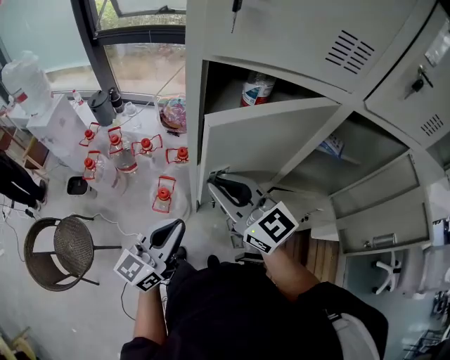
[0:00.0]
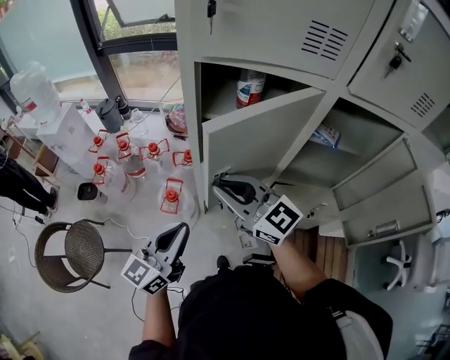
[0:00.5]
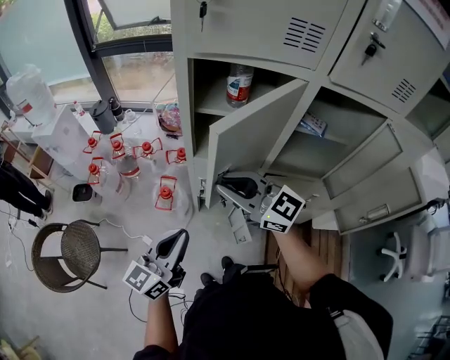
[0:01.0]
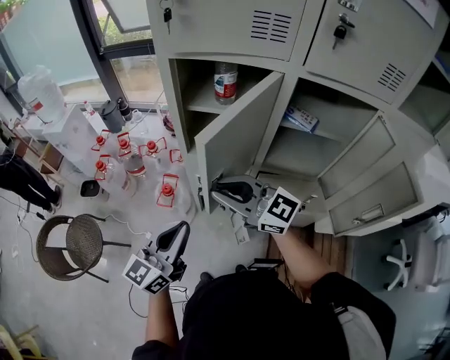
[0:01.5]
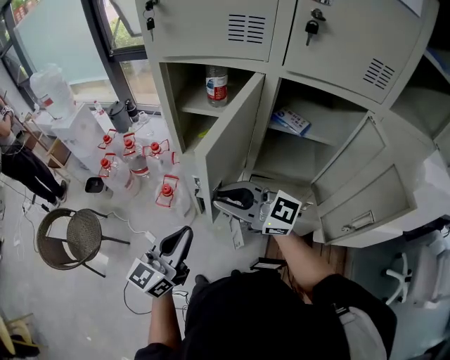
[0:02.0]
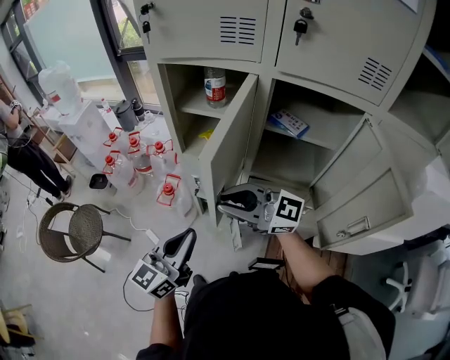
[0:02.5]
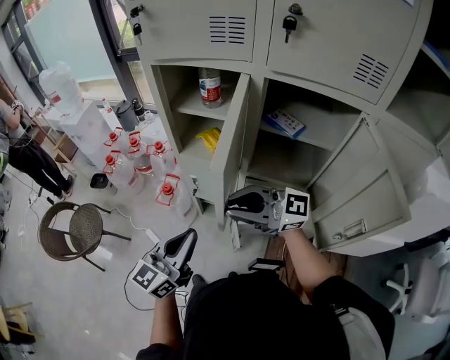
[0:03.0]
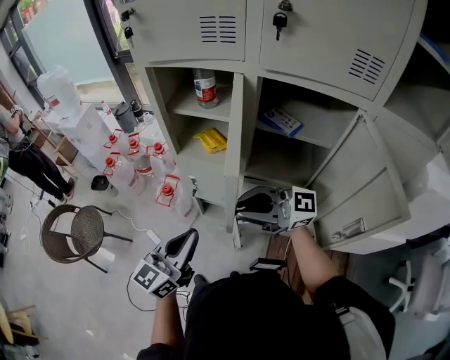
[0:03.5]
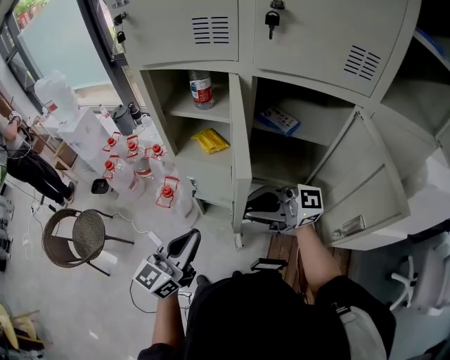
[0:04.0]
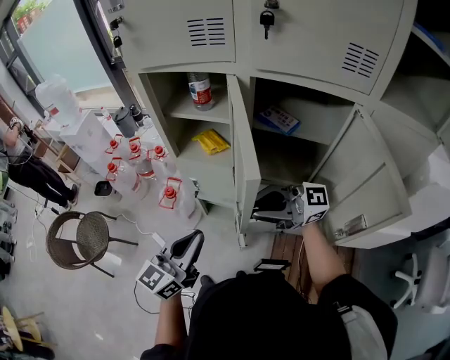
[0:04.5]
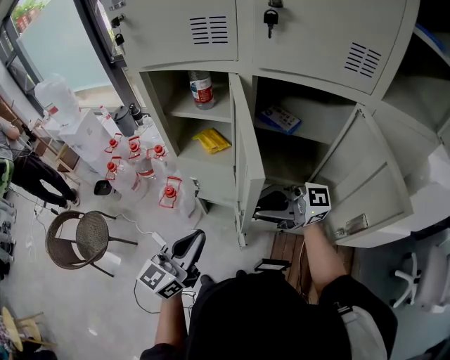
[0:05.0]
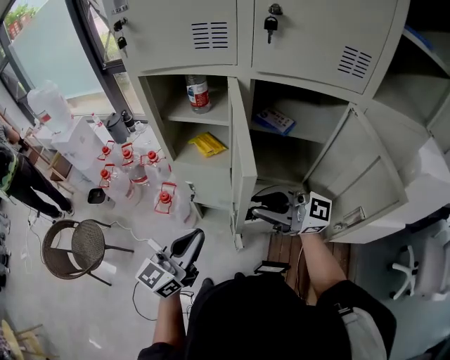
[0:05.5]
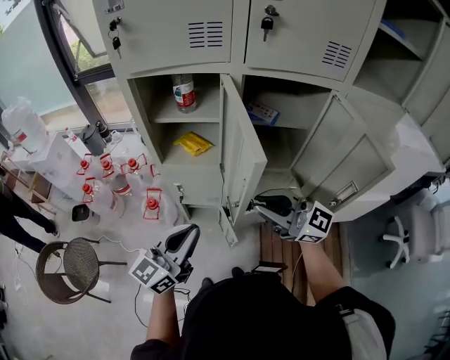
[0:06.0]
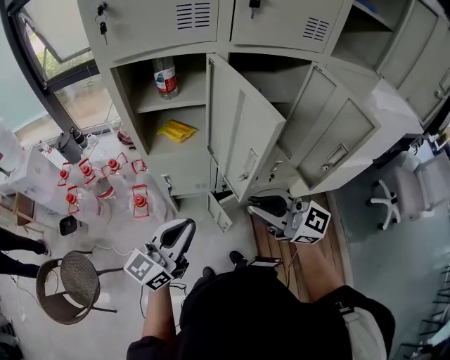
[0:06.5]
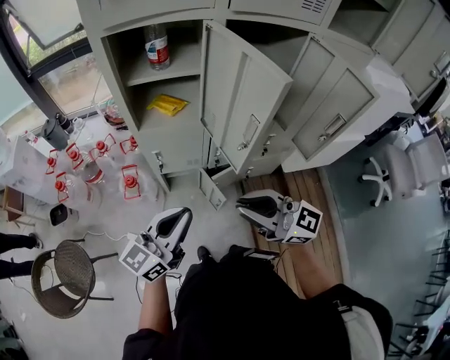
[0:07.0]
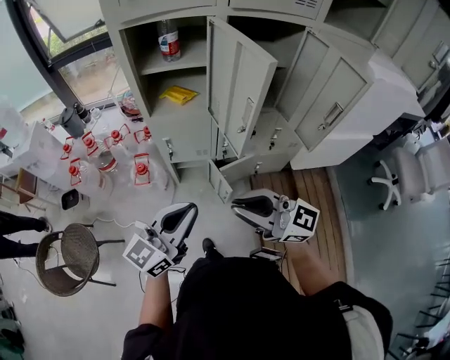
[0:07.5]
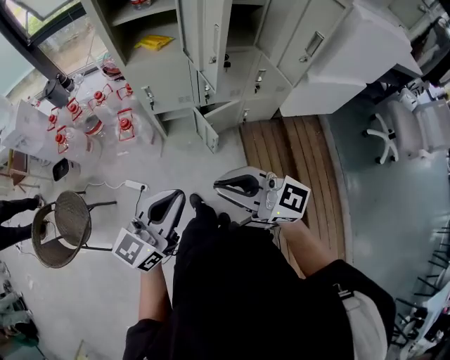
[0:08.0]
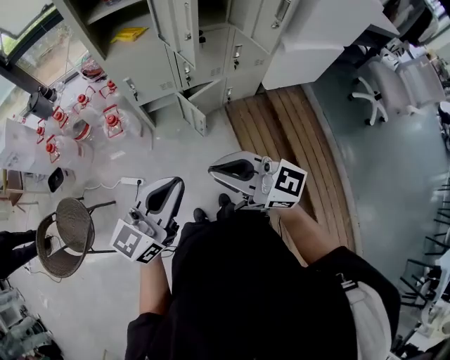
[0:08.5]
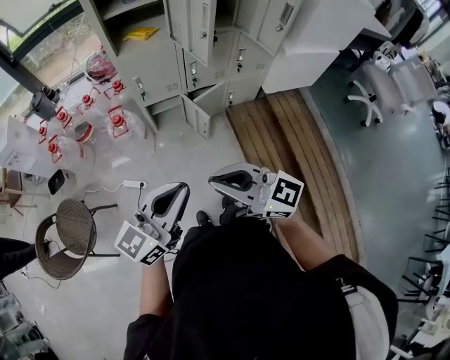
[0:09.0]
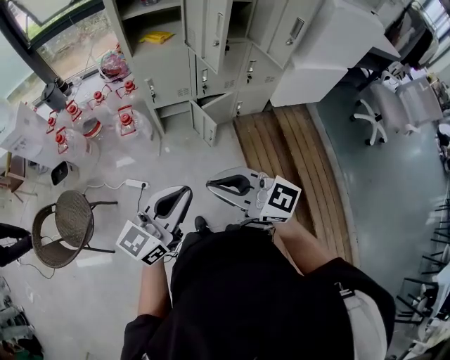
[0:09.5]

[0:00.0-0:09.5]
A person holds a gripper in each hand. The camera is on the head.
0:00.0 to 0:02.0: The grippers both shift backward and to the right by roughly 20 cm. The right gripper changes its angle by about 30 degrees.
0:02.0 to 0:04.0: The left gripper shifts by roughly 5 cm. Meanwhile the right gripper shifts by about 15 cm, and swivels about 20 degrees.
0:04.0 to 0:05.5: There are only small adjustments of the grippers.
0:05.5 to 0:07.5: The left gripper ends up roughly 15 cm from where it was, and swivels roughly 20 degrees. The right gripper changes place by roughly 25 cm, and turns by approximately 30 degrees.
0:07.5 to 0:09.5: The left gripper heads backward, covering approximately 25 cm; the right gripper goes some 25 cm backward and to the left.

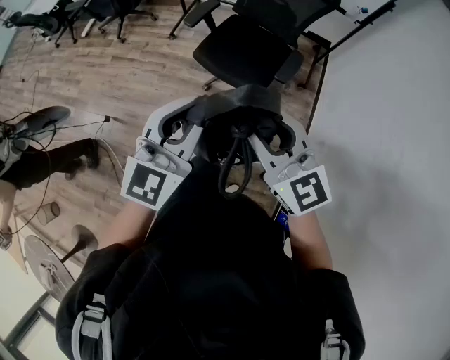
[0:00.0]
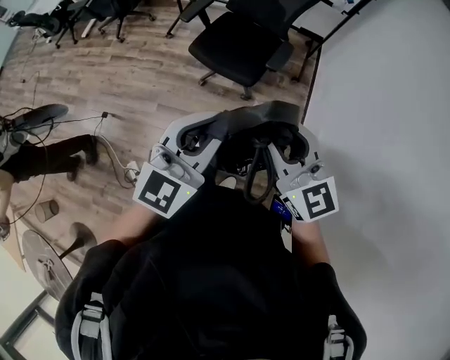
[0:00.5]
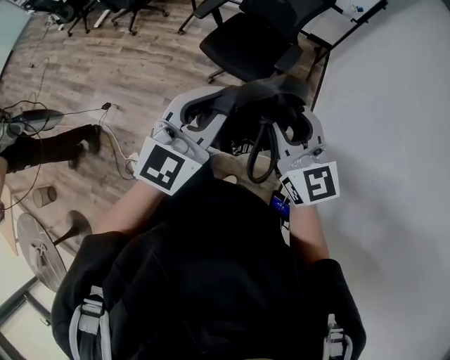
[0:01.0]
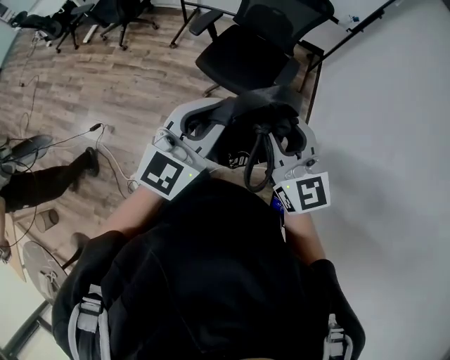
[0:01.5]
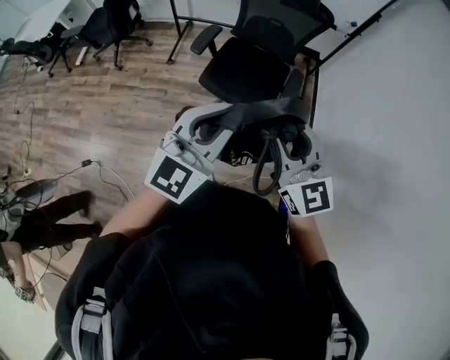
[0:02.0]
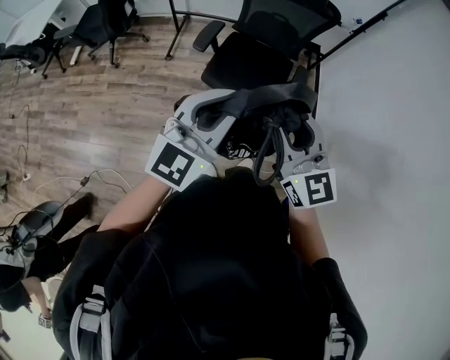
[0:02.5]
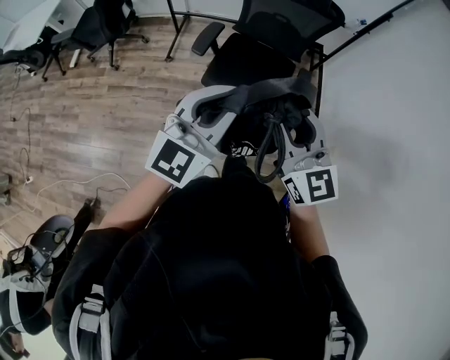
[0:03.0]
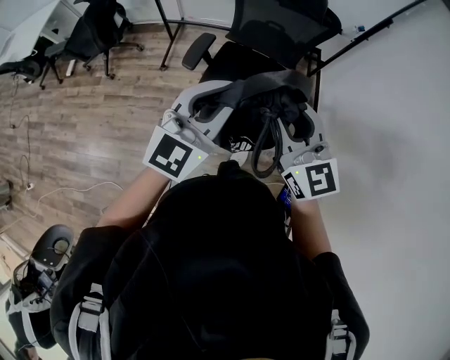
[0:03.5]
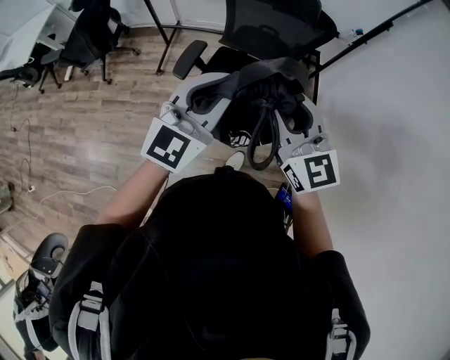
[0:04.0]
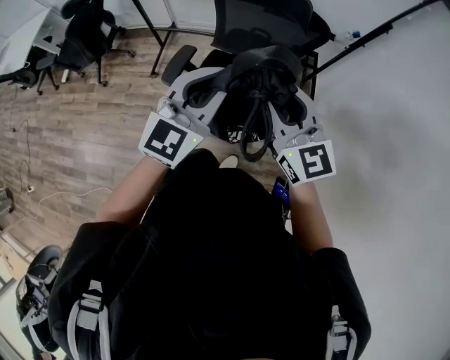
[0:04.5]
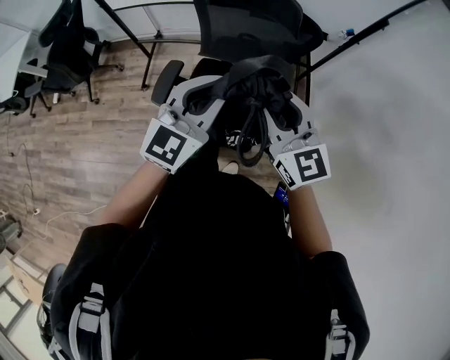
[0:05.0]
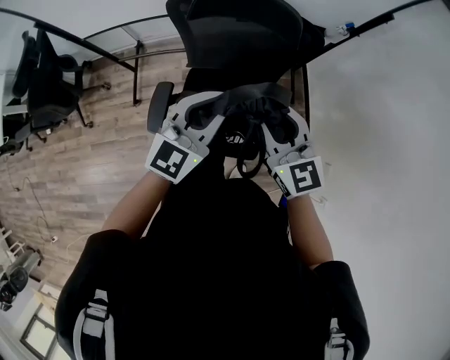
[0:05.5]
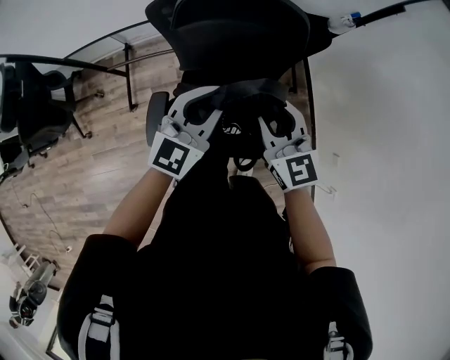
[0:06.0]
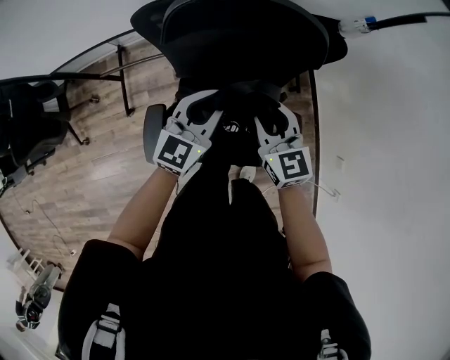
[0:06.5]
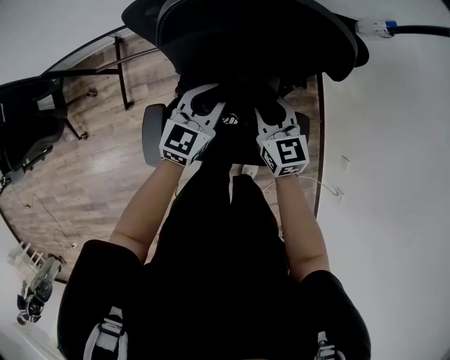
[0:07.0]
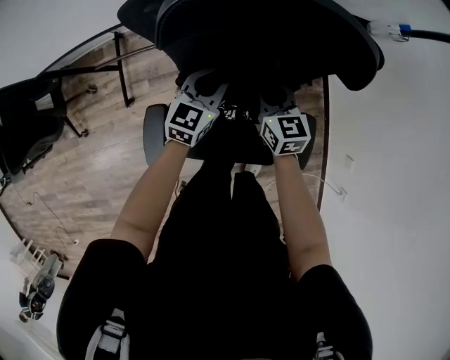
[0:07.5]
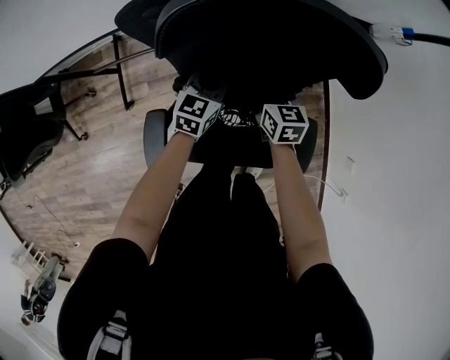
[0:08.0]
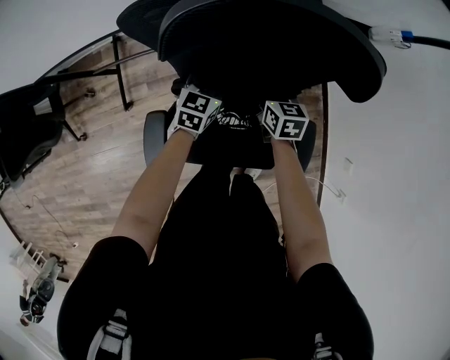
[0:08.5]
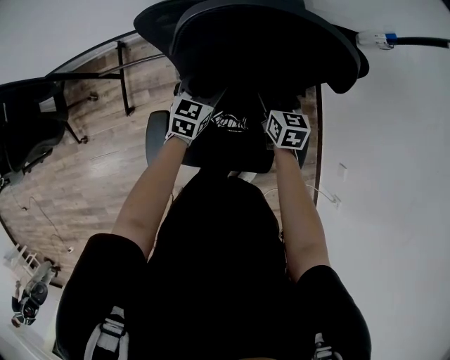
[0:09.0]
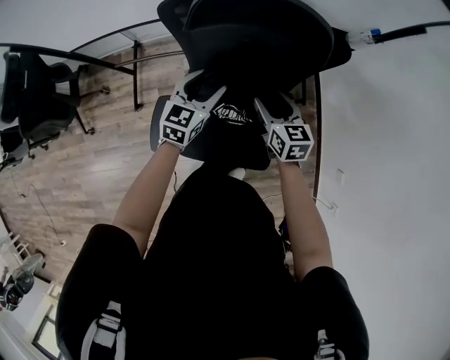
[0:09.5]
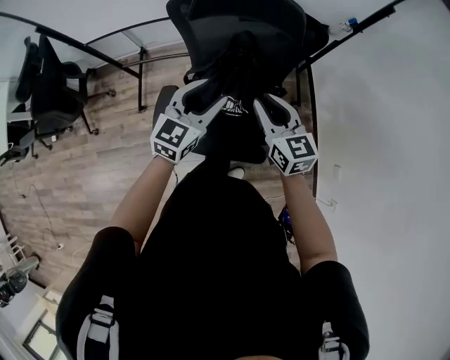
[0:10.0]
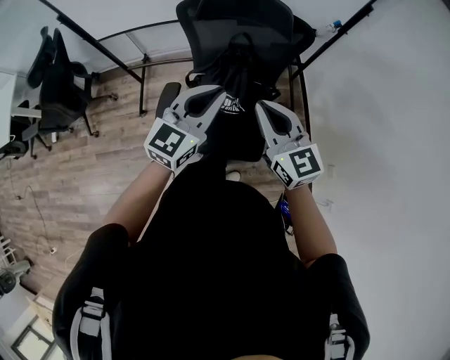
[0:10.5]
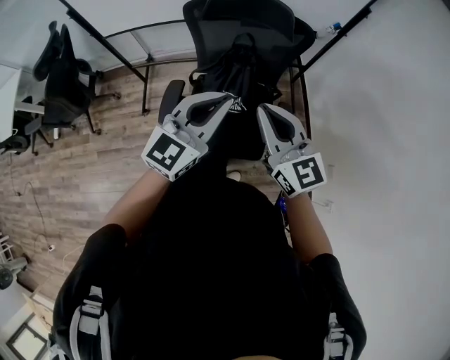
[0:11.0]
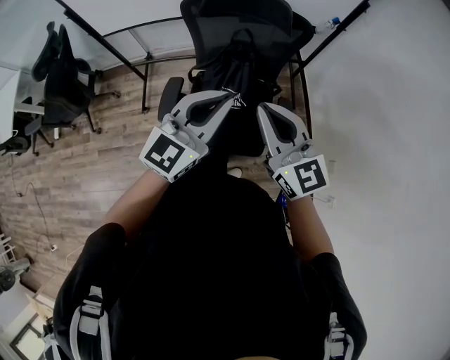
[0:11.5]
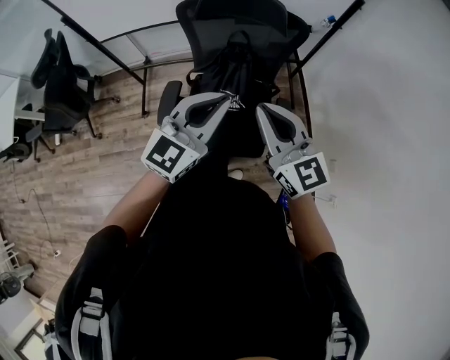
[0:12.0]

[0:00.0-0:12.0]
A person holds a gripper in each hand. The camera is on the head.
0:00.0 to 0:02.0: The left gripper shifts roughly 10 cm to the left, and goes backward and returns, approximately 10 cm each way, while the right gripper shifts some 10 cm to the left and upward, and swivels approximately 20 degrees.
0:02.0 to 0:04.0: The grippers both shift forward by approximately 30 cm.
0:04.0 to 0:06.0: The grippers both shift forward and downward by roughly 40 cm. The left gripper changes its angle by about 20 degrees, while the right gripper rotates some 20 degrees.
0:06.0 to 0:08.0: The grippers both shift downward and forward by roughly 35 cm. The right gripper changes its angle by roughly 30 degrees, while the left gripper swivels some 20 degrees.
0:08.0 to 0:10.0: Both grippers travel together upward and backward, about 35 cm. The left gripper opens; the right gripper rotates approximately 30 degrees, and opens, then closes again.
0:10.0 to 0:12.0: The grippers both shift upward and backward by about 25 cm. The left gripper closes up.

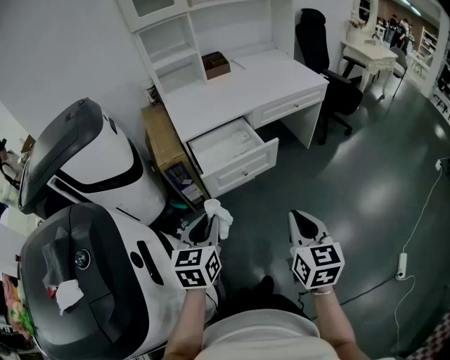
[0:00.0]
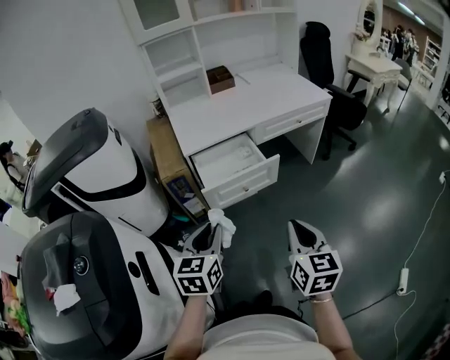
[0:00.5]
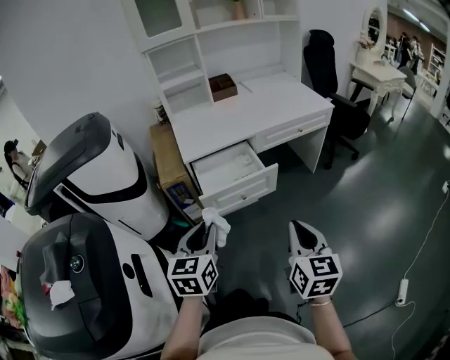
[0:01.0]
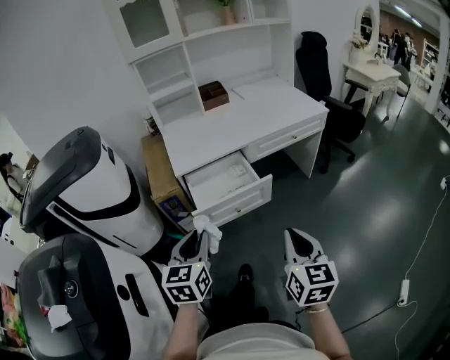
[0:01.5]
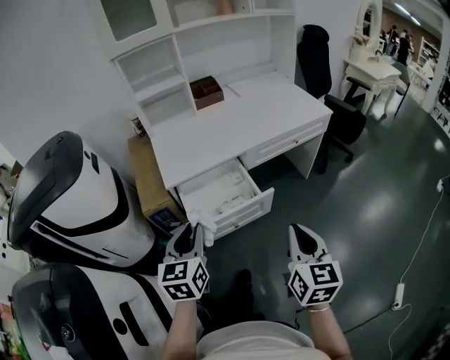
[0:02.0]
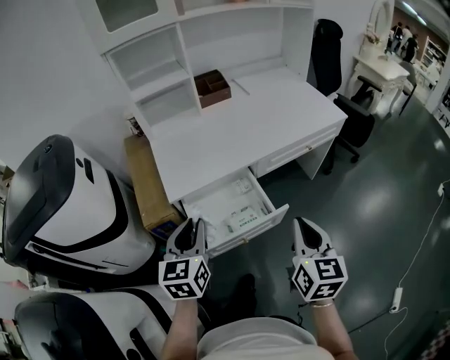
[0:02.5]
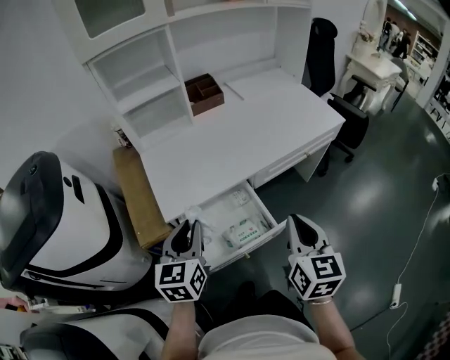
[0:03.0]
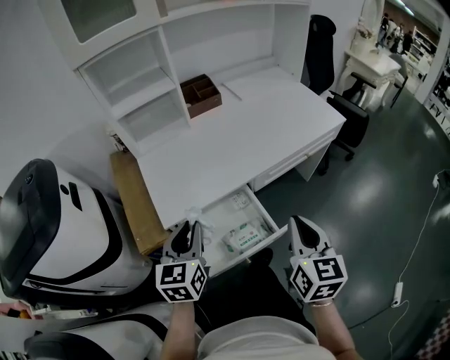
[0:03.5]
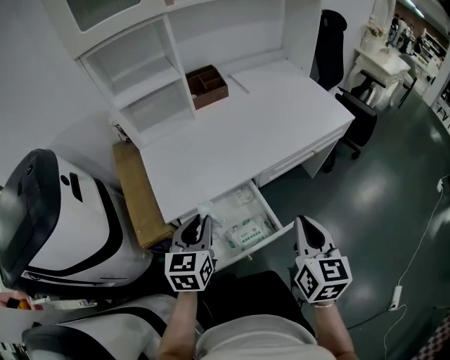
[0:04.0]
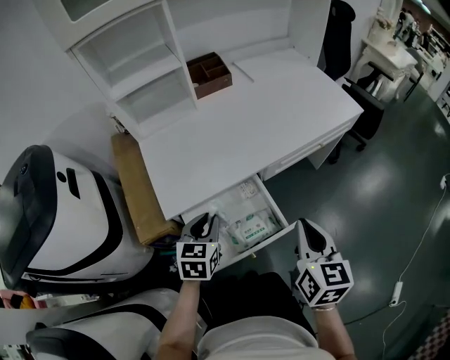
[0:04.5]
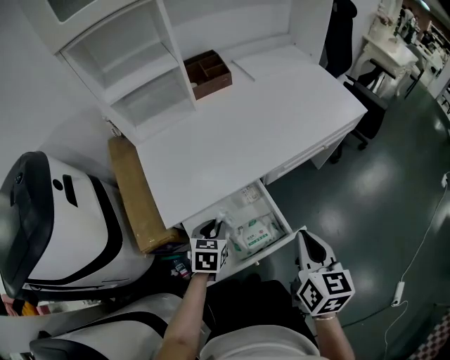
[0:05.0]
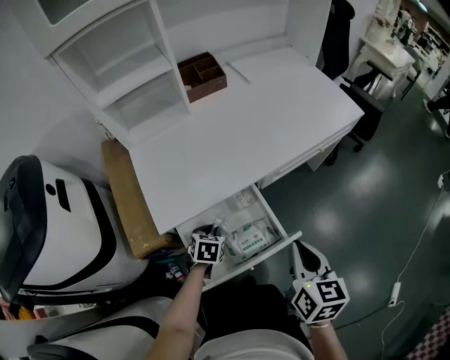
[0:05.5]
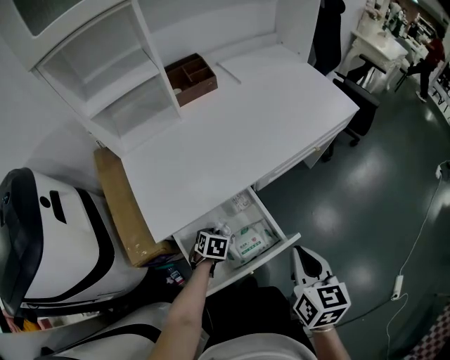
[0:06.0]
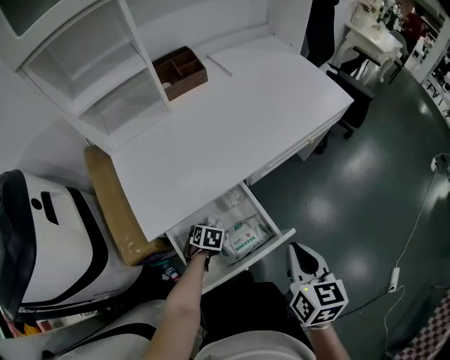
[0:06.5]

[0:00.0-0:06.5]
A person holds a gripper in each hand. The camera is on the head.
0:00.0 to 0:02.0: The two grippers go some 20 cm forward.
0:02.0 to 0:04.5: The right gripper travels forward by some 20 cm. Meanwhile the left gripper heads forward and downward, covering about 25 cm, and changes its angle by roughly 20 degrees.
0:04.5 to 0:06.5: The left gripper goes some 25 cm downward, and points its fingers some 40 degrees further downward; the right gripper moves downward, about 5 cm.
